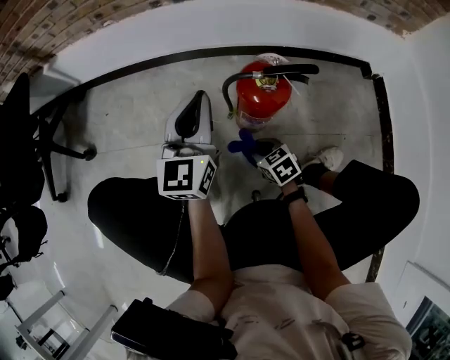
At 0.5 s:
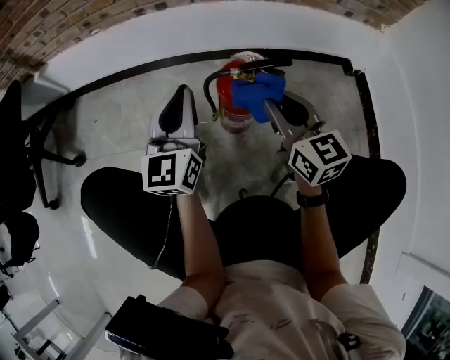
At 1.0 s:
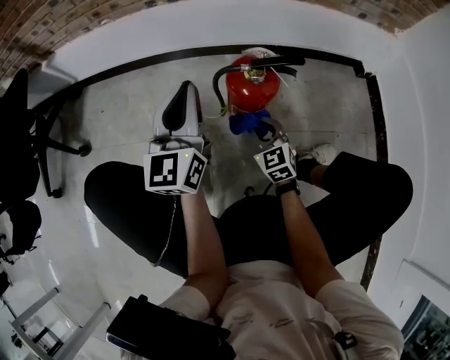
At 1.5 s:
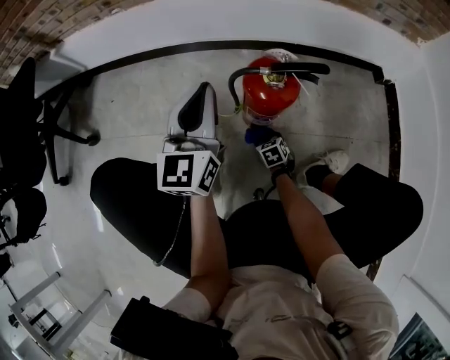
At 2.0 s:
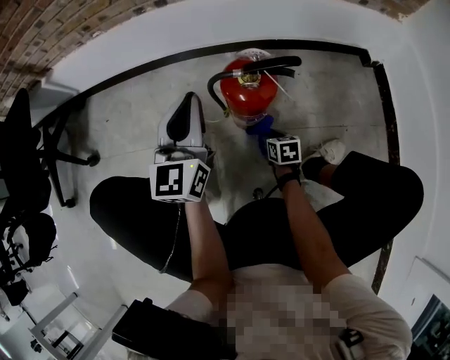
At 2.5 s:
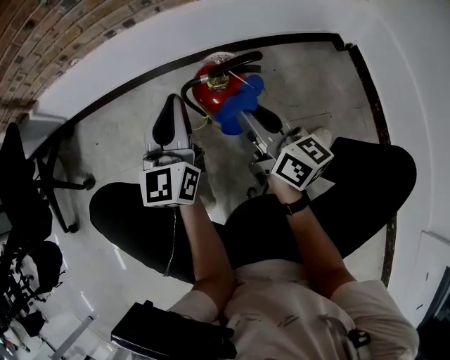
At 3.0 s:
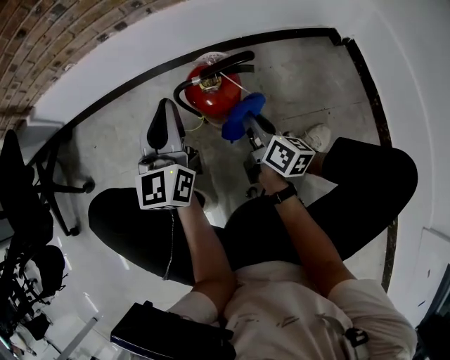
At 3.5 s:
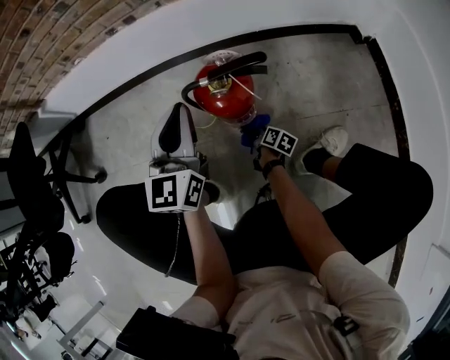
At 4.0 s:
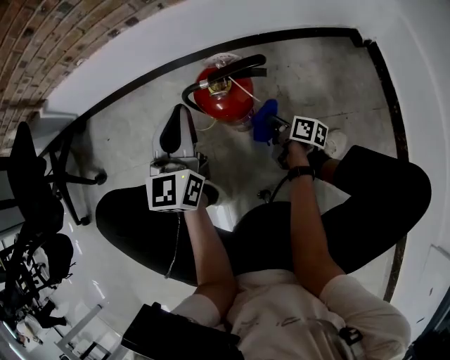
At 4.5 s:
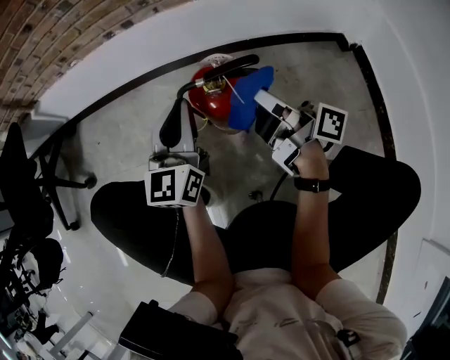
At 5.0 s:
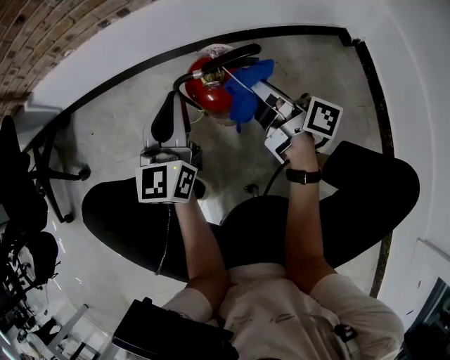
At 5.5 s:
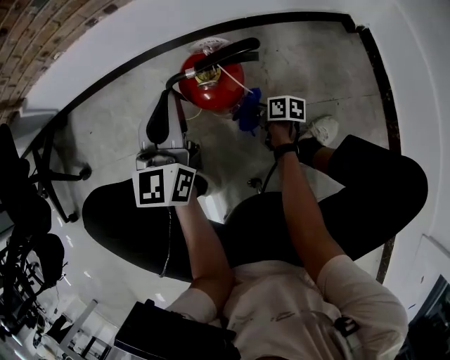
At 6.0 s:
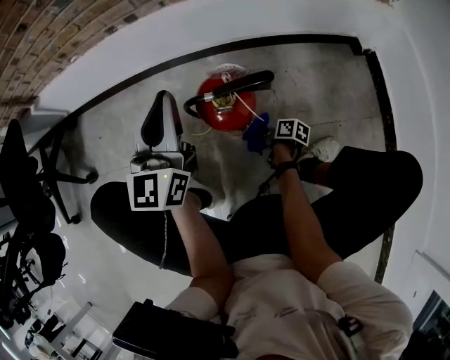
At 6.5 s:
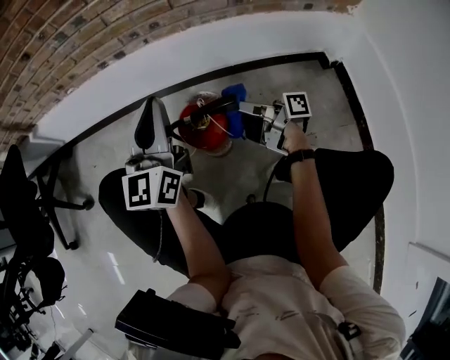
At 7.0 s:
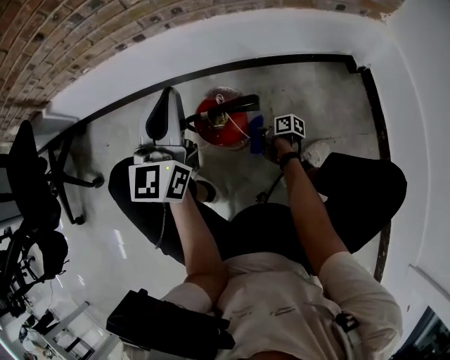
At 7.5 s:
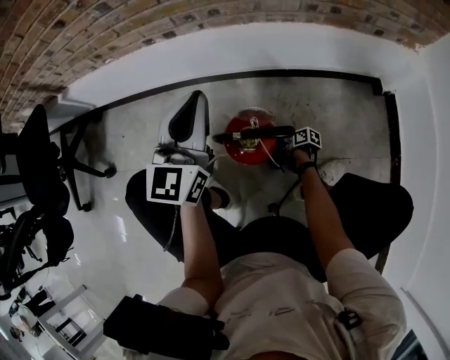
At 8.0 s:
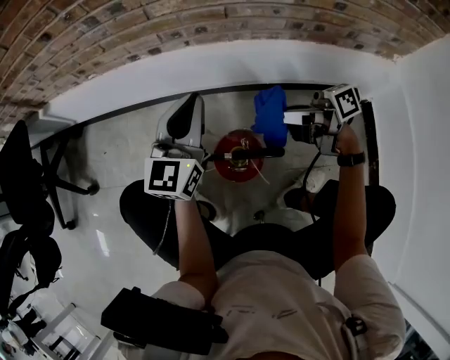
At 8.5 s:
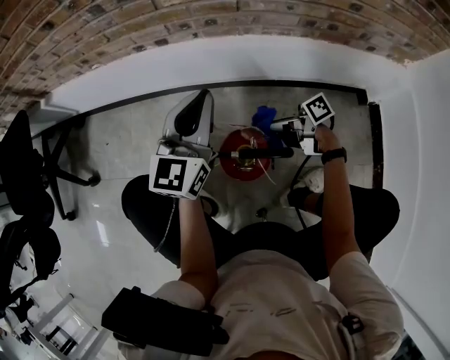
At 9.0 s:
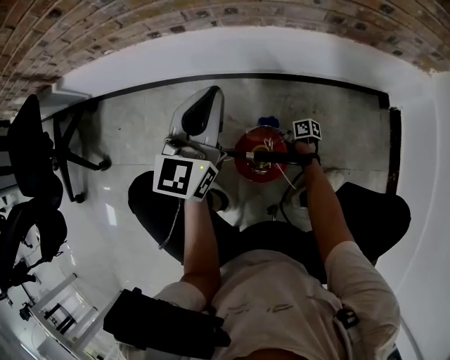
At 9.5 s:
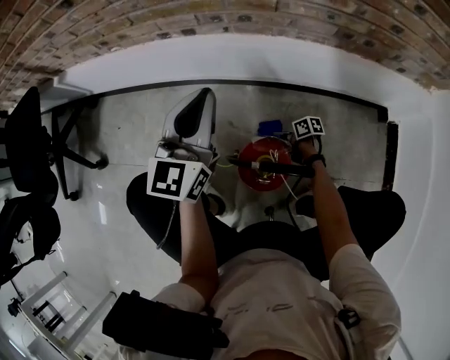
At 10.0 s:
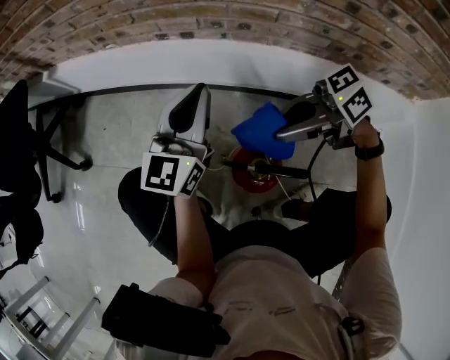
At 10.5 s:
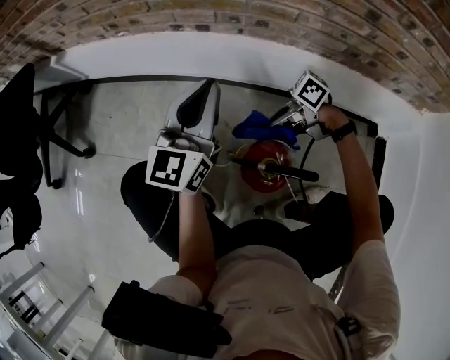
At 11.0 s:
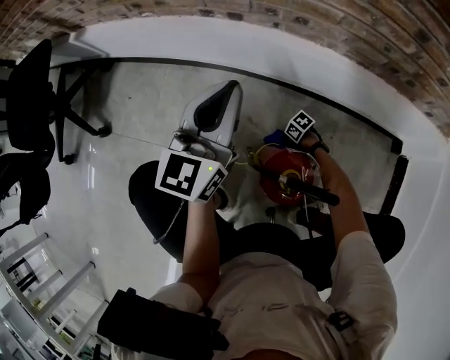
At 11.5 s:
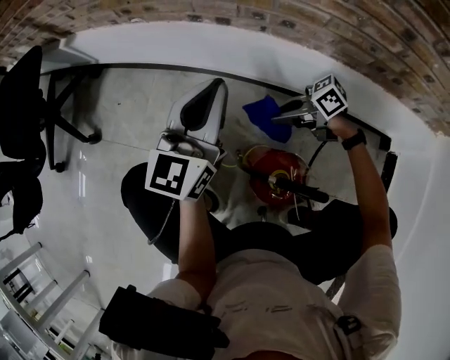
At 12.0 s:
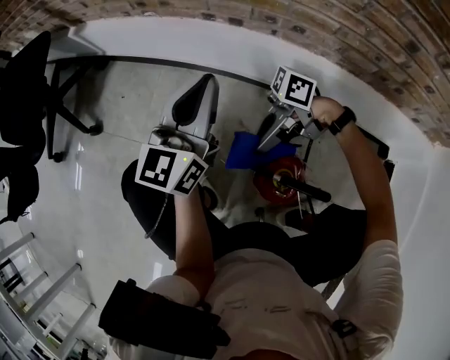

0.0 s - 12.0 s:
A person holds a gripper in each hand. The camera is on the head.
0.0 s - 2.0 s: The right gripper swings up and down, some 40 cm each way, with 2 reversals, and turns by approximately 30 degrees.
2.0 s - 4.0 s: The right gripper moves up and down over approximately 40 cm, changing direction 2 times, and rotates some 50 degrees.
4.0 s - 6.0 s: The right gripper travels upward and back again, roughly 30 cm each way, and changes its angle by about 20 degrees. Meanwhile the left gripper goes about 5 cm upward.
6.0 s - 8.0 s: The left gripper moves forward and to the right, some 10 cm. The right gripper moves up and down over about 40 cm, changing direction 2 times, and angles its fingers upward, by approximately 40 degrees.
8.0 s - 10.0 s: The right gripper reaches roughly 40 cm downward, then returns, and swivels approximately 40 degrees; the left gripper changes place by approximately 5 cm.
10.0 s - 12.0 s: The right gripper reaches approximately 50 cm downward, then returns, and swivels about 40 degrees. The left gripper ends up some 5 cm from where it was.

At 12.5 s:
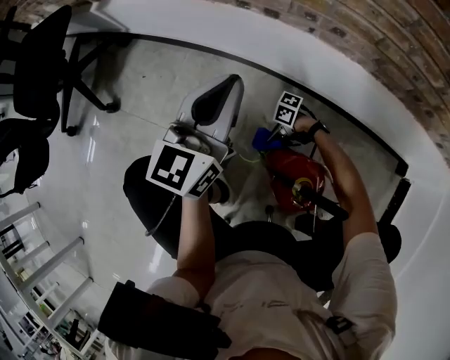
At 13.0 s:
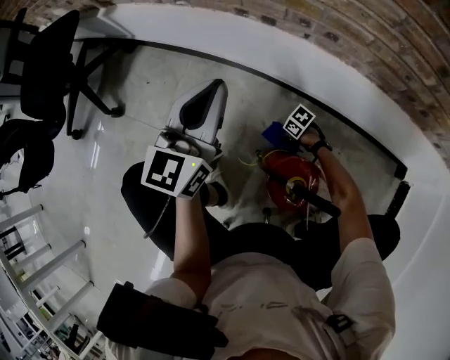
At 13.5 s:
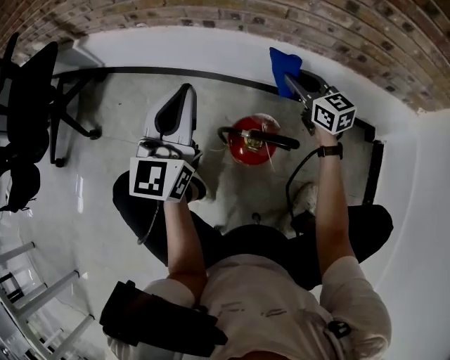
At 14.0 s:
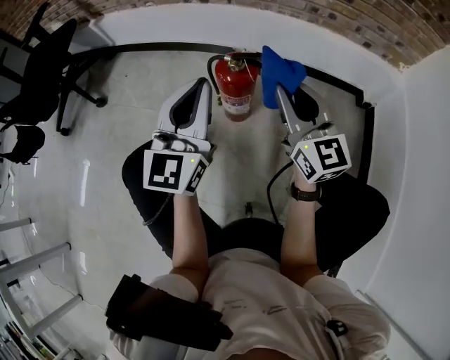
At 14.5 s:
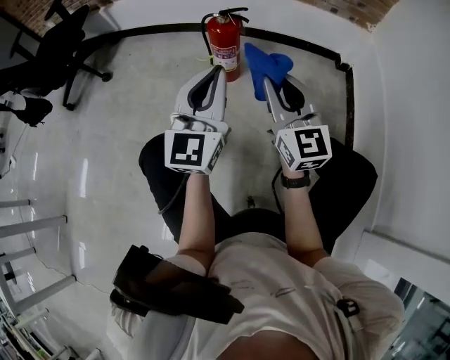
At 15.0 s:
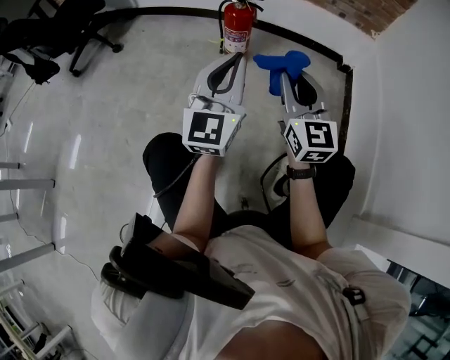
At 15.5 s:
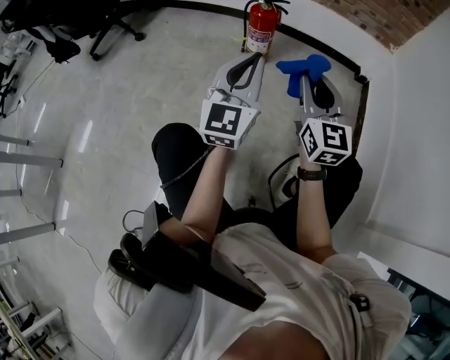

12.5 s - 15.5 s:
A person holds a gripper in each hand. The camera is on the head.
12.5 s - 14.0 s: The left gripper changes place by some 35 cm. The right gripper heads upward, covering about 50 cm, and tips its fingers upward by about 30 degrees.
14.0 s - 15.5 s: Both grippers move backward, roughly 30 cm.

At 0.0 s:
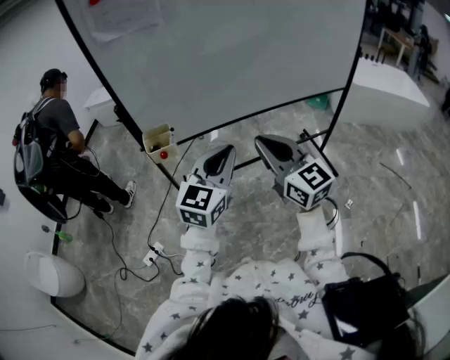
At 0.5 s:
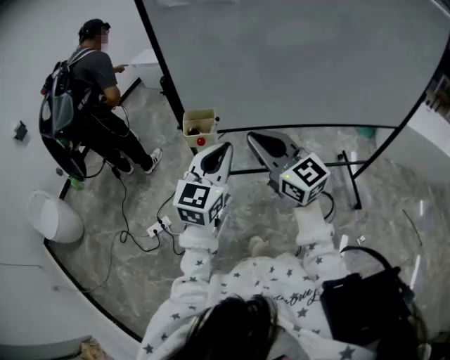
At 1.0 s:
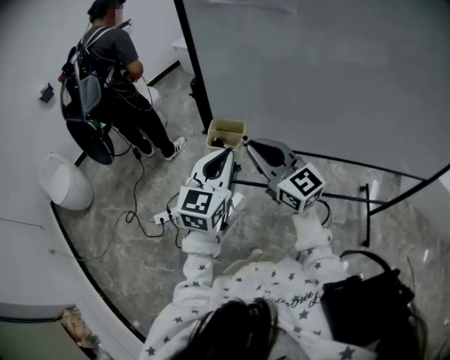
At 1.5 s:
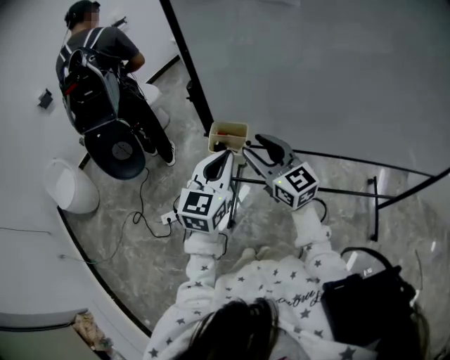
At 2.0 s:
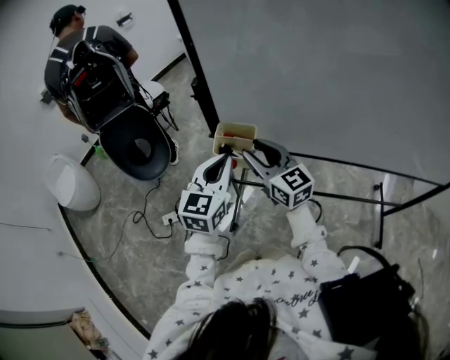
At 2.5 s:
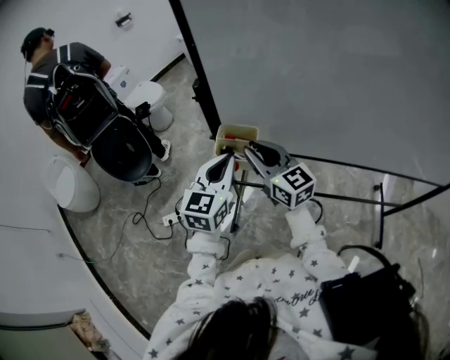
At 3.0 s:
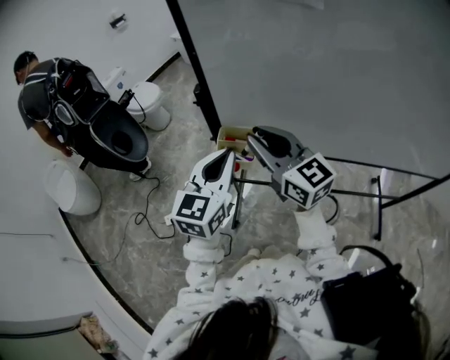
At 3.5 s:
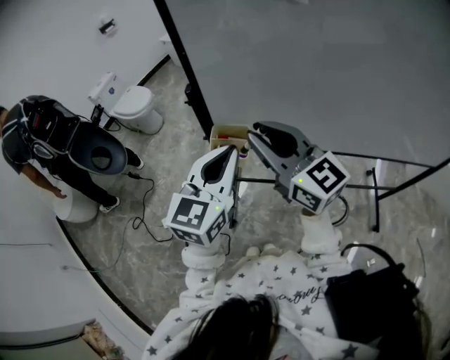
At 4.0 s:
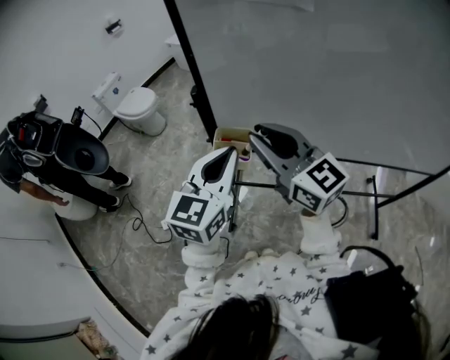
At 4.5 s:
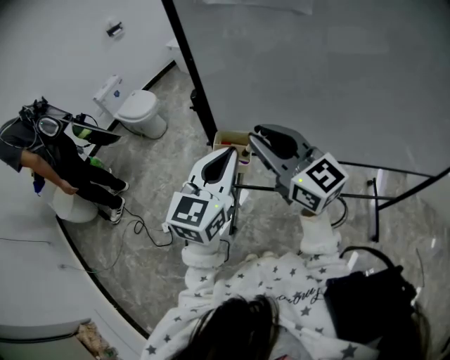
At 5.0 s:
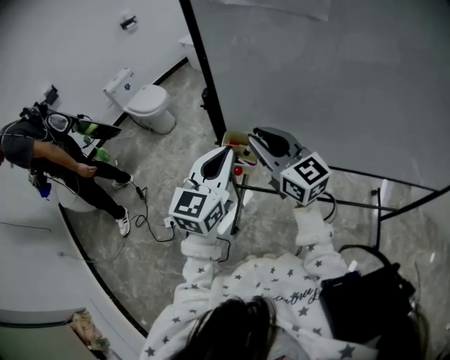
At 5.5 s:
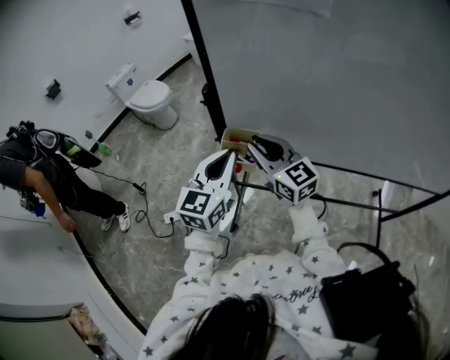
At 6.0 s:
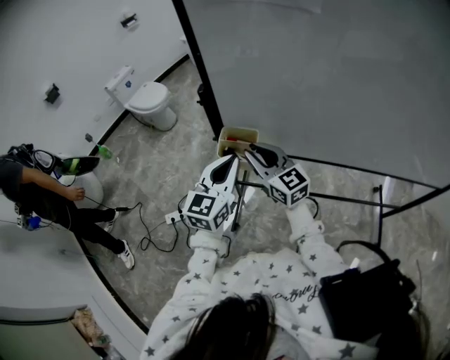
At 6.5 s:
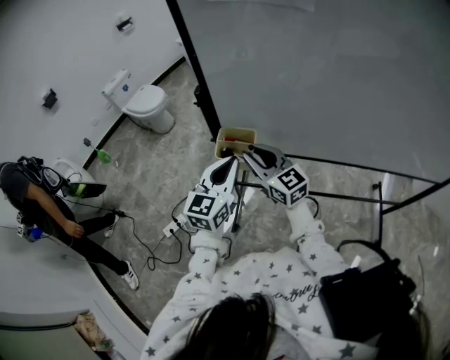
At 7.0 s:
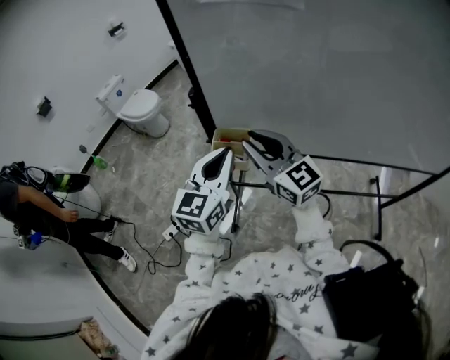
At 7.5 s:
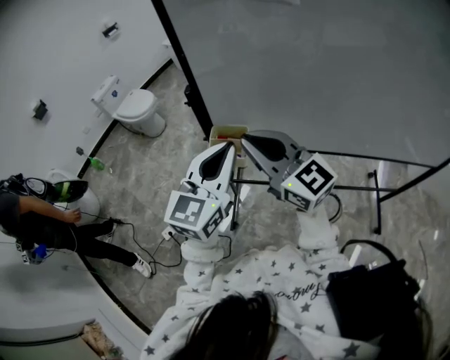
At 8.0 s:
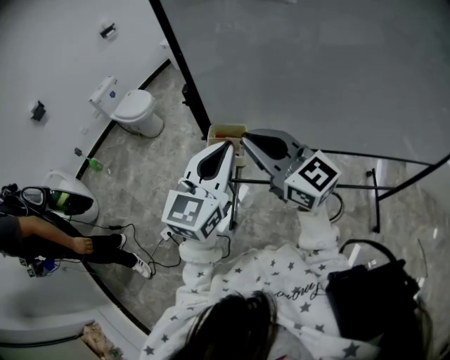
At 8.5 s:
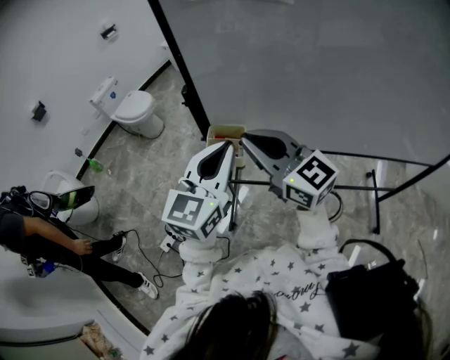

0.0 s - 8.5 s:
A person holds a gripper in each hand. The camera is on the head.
0.0 s - 2.0 s: The right gripper moves approximately 35 cm, rotates some 30 degrees, and opens up. The left gripper ends up roughly 30 cm from where it was, and turns by about 40 degrees.
2.0 s - 4.0 s: The two grippers go about 15 cm upward. The right gripper closes.
4.0 s - 6.5 s: The right gripper is displaced downward by approximately 15 cm. Meanwhile the left gripper travels downward by about 10 cm.
6.5 s - 8.5 s: The left gripper heads upward, covering some 10 cm; the right gripper shifts approximately 15 cm upward and backward.

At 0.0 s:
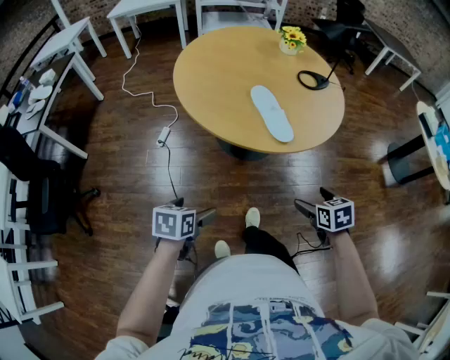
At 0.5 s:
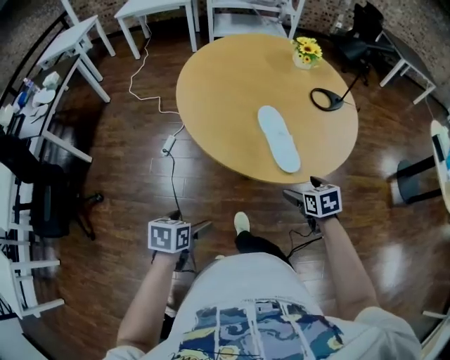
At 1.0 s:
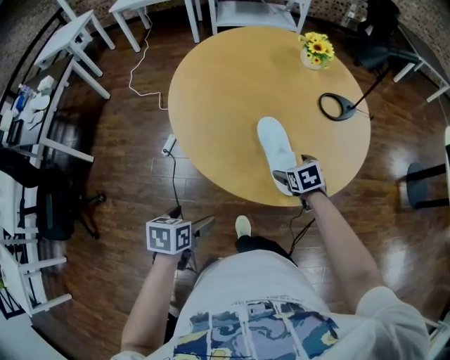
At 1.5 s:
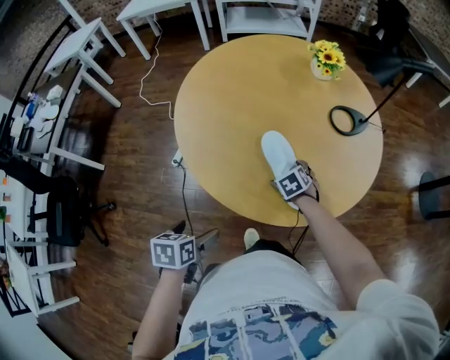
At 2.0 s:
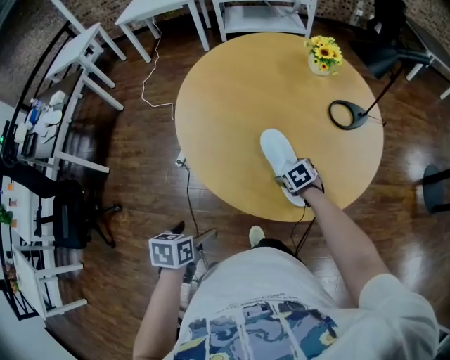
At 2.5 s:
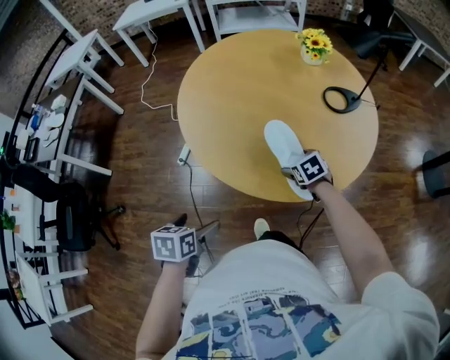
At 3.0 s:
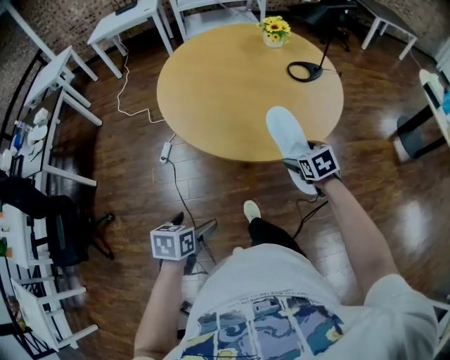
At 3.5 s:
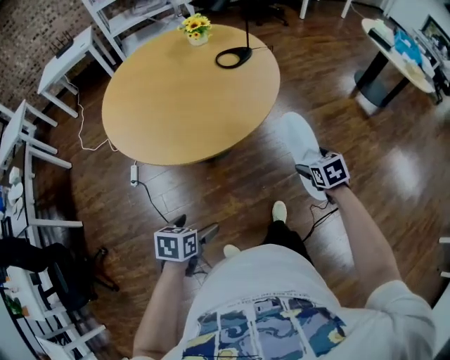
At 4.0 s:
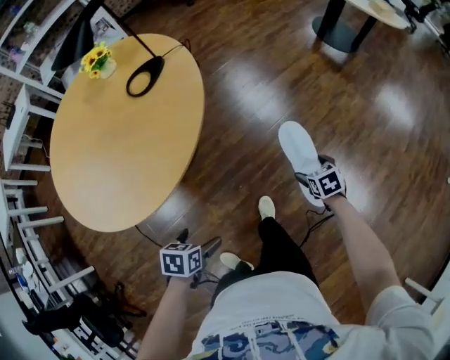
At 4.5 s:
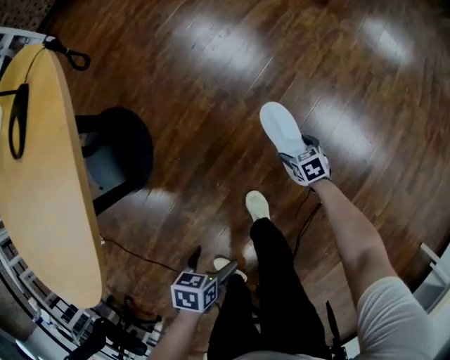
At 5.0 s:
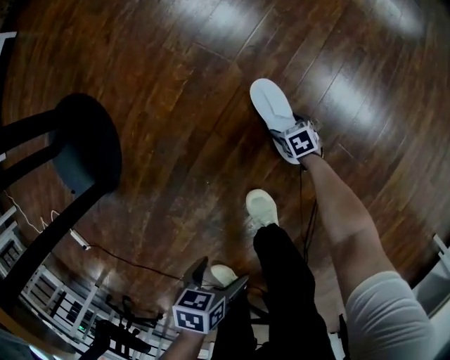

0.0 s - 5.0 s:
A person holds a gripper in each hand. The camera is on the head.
0.0 s - 2.5 s: The left gripper heads forward, covering roughly 20 cm, while the right gripper goes approximately 35 cm forward.
2.5 s - 5.0 s: Both grippers are carried some 70 cm. The left gripper turns by about 70 degrees; the right gripper shifts roughly 80 cm downward, and rolls clockwise, seen from behind, by about 60 degrees.
